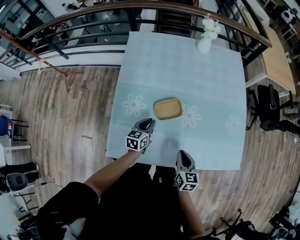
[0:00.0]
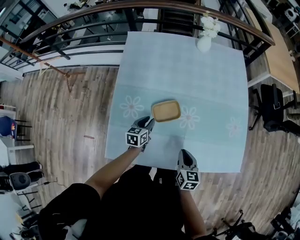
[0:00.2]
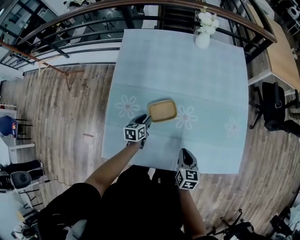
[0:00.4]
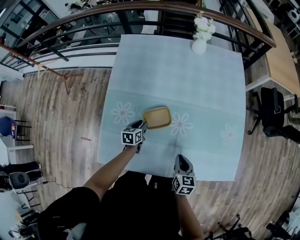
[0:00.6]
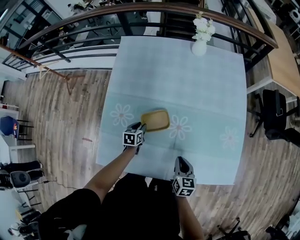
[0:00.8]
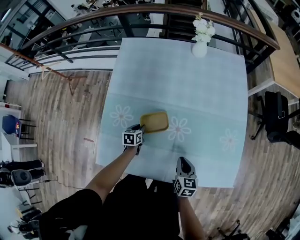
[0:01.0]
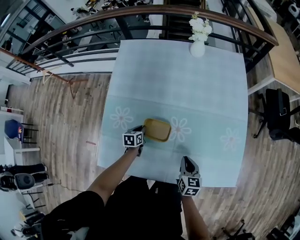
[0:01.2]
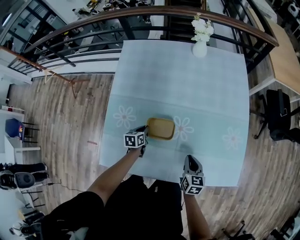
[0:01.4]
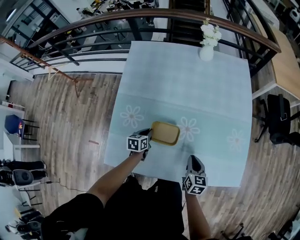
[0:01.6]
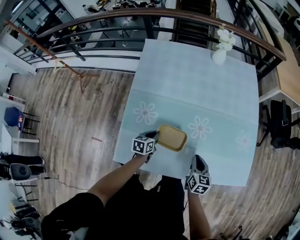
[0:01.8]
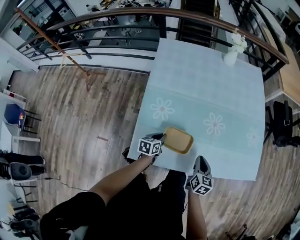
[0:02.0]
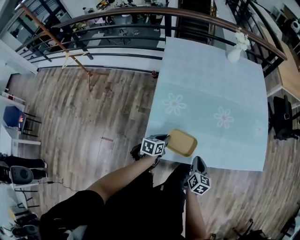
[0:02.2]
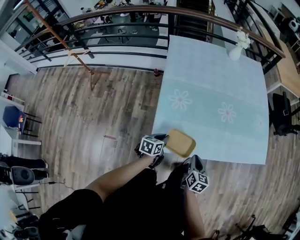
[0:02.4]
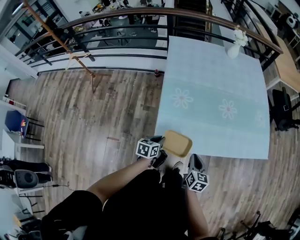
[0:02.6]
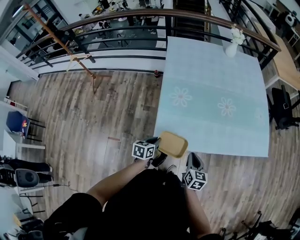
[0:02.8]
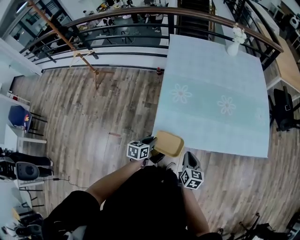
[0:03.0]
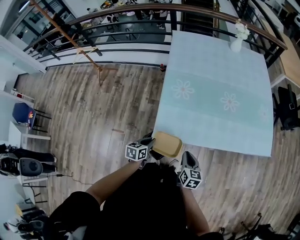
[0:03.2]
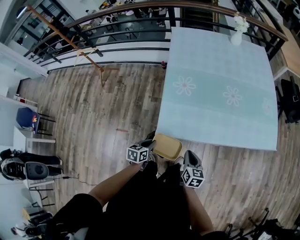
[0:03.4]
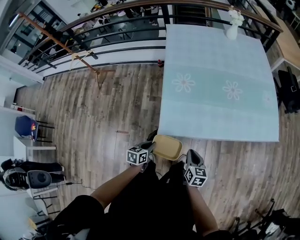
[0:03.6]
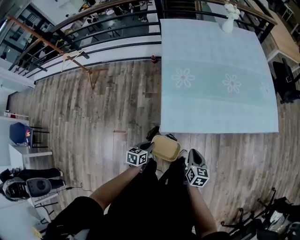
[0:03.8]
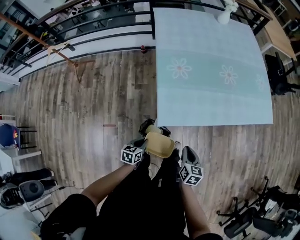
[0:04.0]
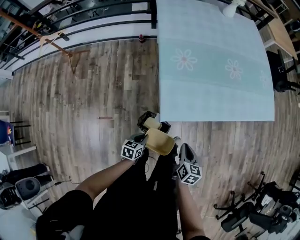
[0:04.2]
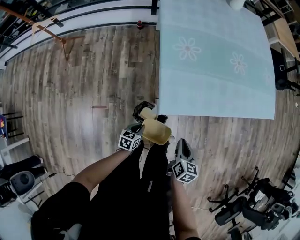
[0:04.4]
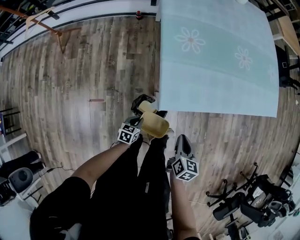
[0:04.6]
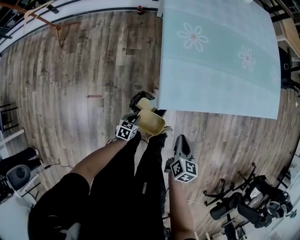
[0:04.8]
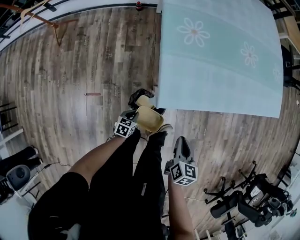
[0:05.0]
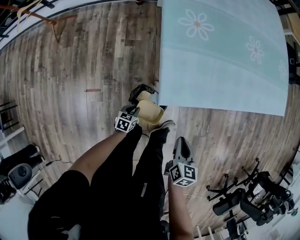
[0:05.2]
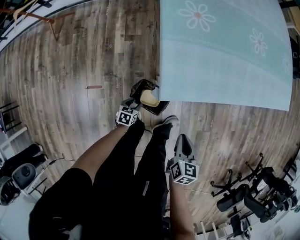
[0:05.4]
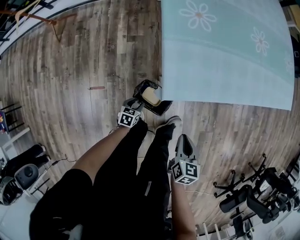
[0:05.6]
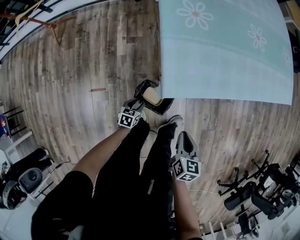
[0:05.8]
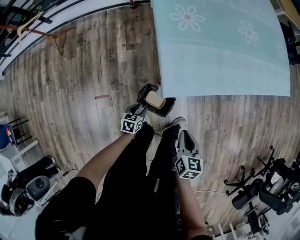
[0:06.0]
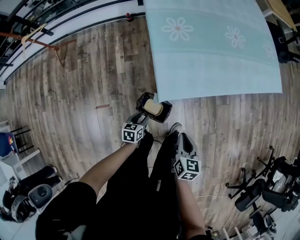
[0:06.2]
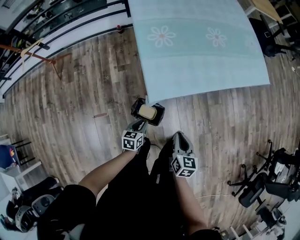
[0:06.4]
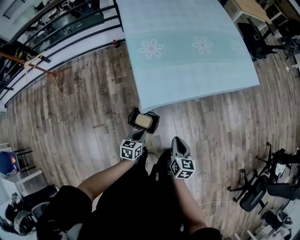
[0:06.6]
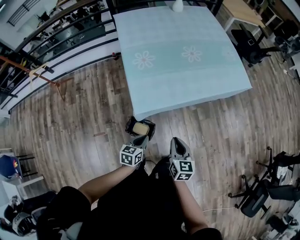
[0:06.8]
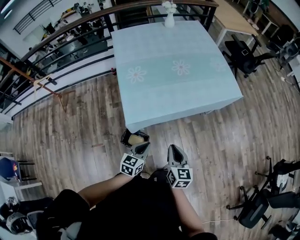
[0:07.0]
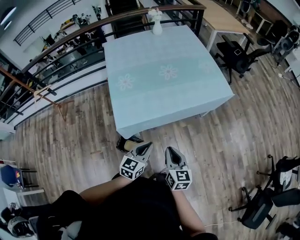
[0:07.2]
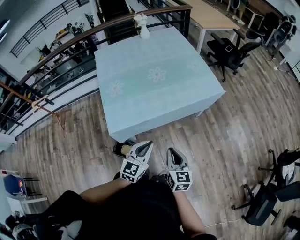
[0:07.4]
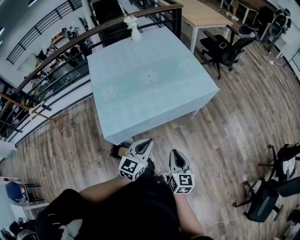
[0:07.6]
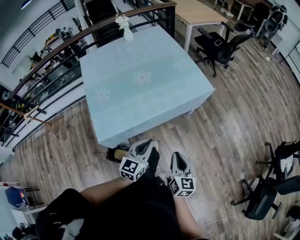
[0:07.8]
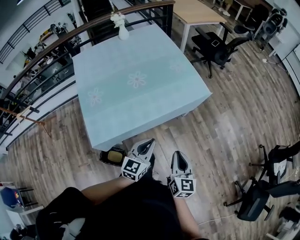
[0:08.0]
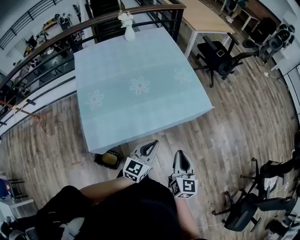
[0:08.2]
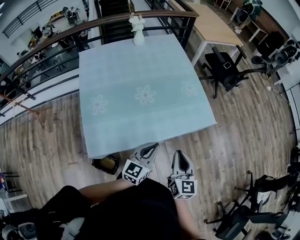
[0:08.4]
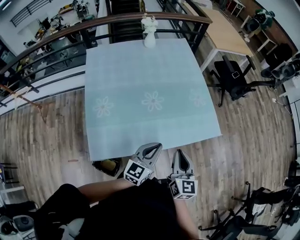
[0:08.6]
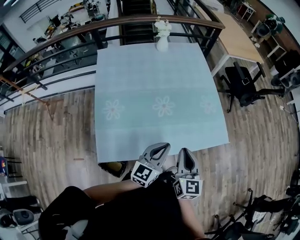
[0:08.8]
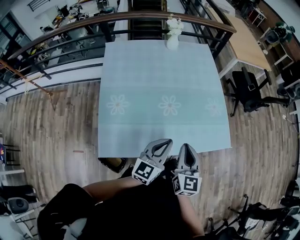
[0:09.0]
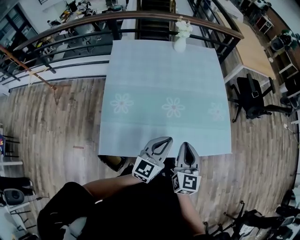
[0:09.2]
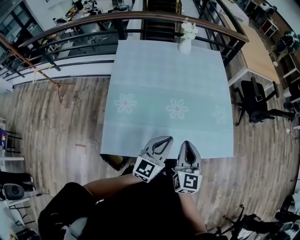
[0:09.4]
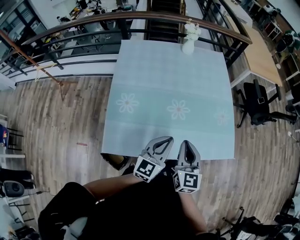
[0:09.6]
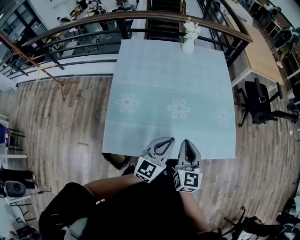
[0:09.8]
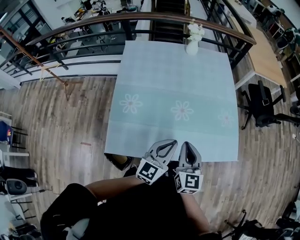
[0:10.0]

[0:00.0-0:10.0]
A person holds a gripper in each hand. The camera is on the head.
0:00.0 to 0:01.4: The left gripper travels downward and forward by approximately 10 cm, and changes its angle by some 20 degrees; the right gripper travels to the right and forward by some 15 cm.
0:01.4 to 0:02.8: Both grippers move backward and to the left, roughly 40 cm.
0:02.8 to 0:04.2: The right gripper travels backward, to the left and downward by some 15 cm. The left gripper moves backward, downward and to the left, roughly 20 cm.
0:04.2 to 0:05.8: The right gripper shifts about 10 cm downward and backward. Meanwhile the left gripper shifts some 20 cm downward, and opens.
0:05.8 to 0:07.2: The left gripper travels upward and to the right by about 60 cm, angles its fingers upward, by about 30 degrees, and closes up; the right gripper is displaced upward and to the right by about 35 cm, and turns by about 30 degrees.
0:07.2 to 0:08.6: The two grippers go approximately 30 cm forward.
0:08.6 to 0:10.0: The right gripper moves forward and to the left, approximately 15 cm. Meanwhile the left gripper shifts approximately 10 cm forward and to the left.

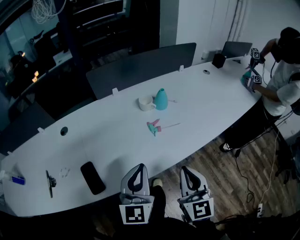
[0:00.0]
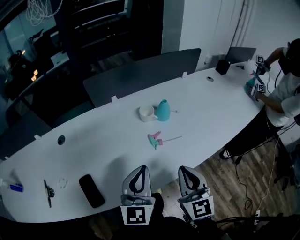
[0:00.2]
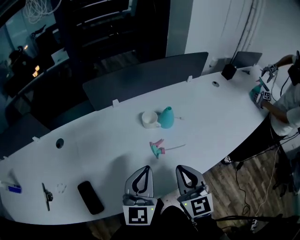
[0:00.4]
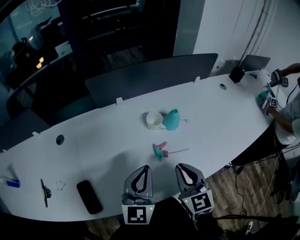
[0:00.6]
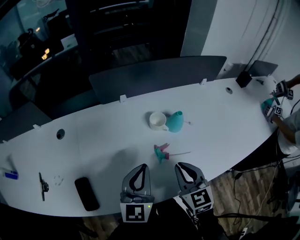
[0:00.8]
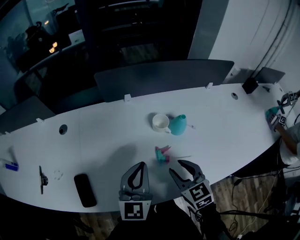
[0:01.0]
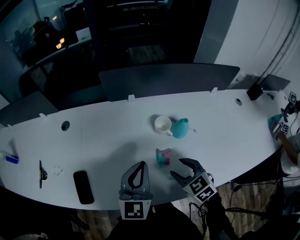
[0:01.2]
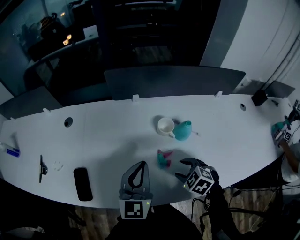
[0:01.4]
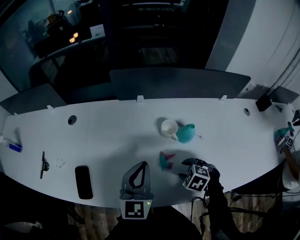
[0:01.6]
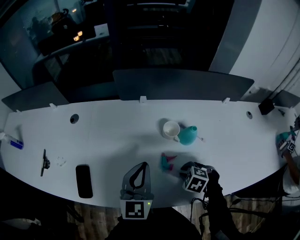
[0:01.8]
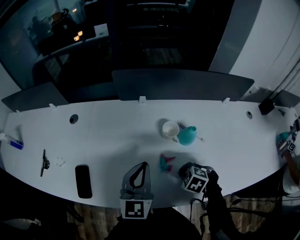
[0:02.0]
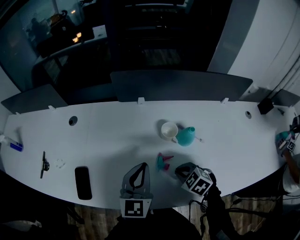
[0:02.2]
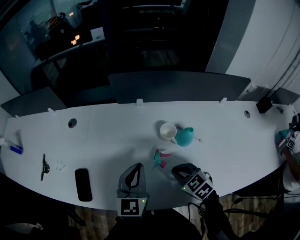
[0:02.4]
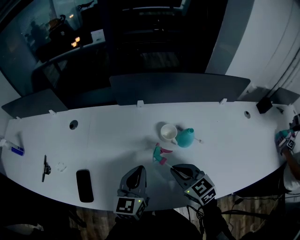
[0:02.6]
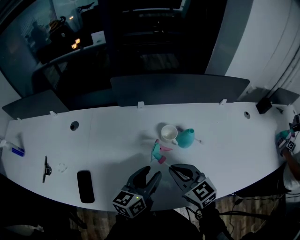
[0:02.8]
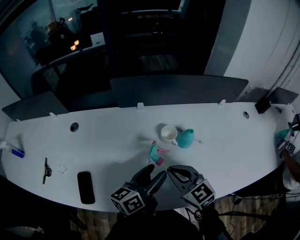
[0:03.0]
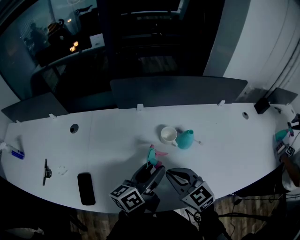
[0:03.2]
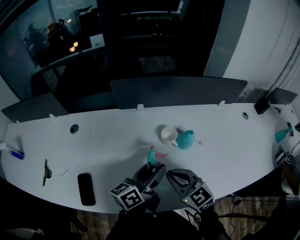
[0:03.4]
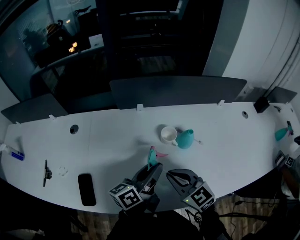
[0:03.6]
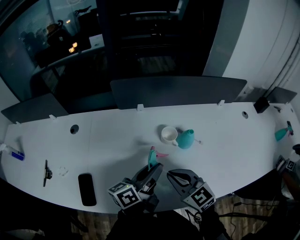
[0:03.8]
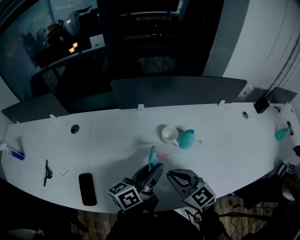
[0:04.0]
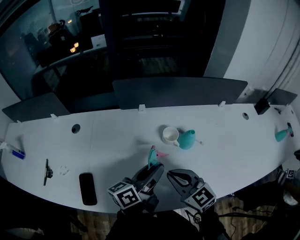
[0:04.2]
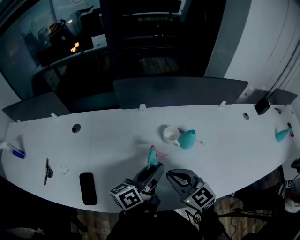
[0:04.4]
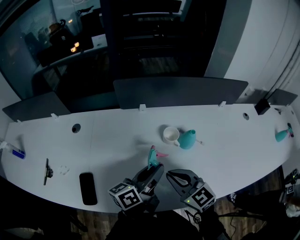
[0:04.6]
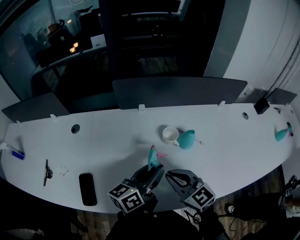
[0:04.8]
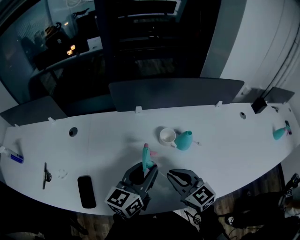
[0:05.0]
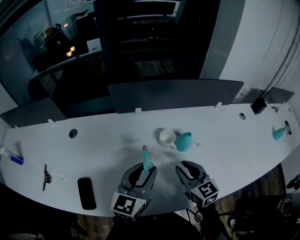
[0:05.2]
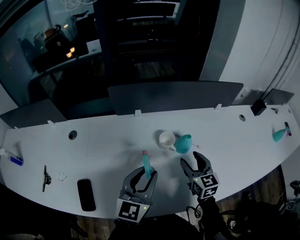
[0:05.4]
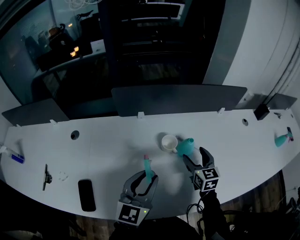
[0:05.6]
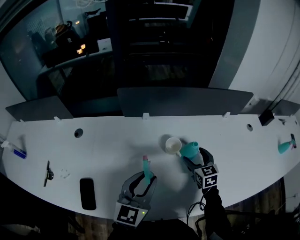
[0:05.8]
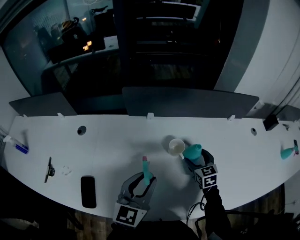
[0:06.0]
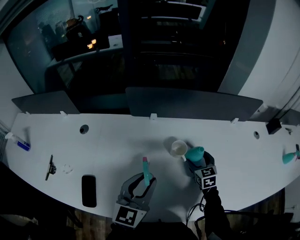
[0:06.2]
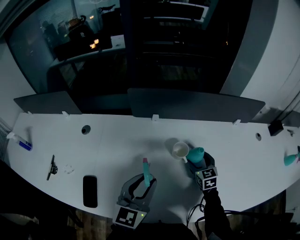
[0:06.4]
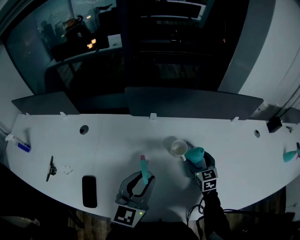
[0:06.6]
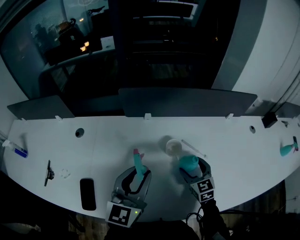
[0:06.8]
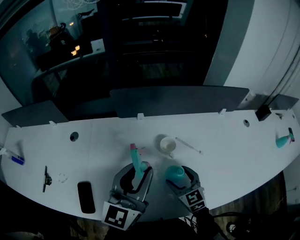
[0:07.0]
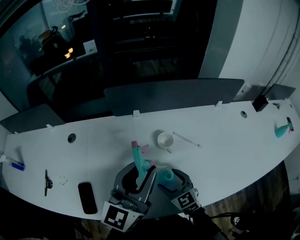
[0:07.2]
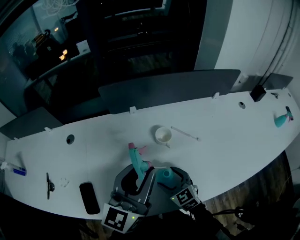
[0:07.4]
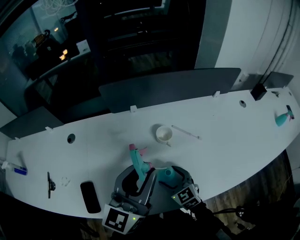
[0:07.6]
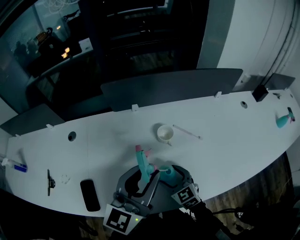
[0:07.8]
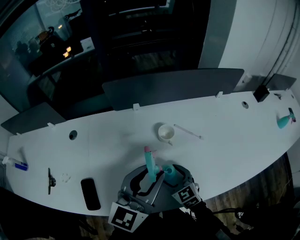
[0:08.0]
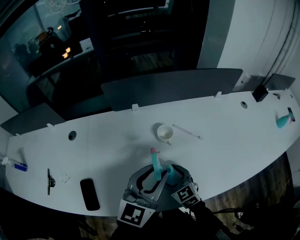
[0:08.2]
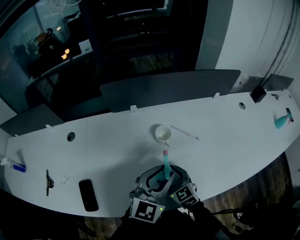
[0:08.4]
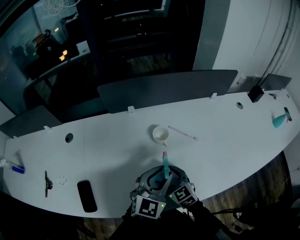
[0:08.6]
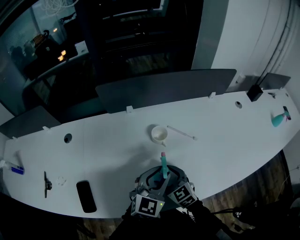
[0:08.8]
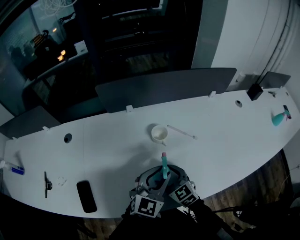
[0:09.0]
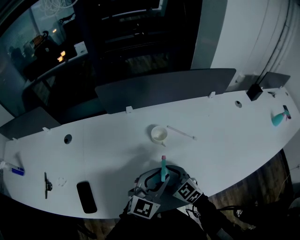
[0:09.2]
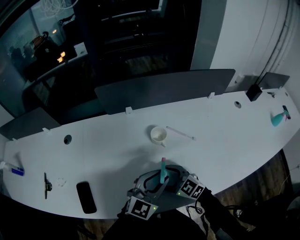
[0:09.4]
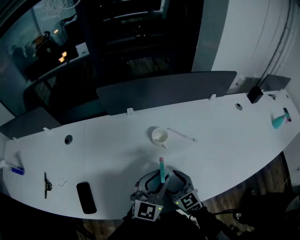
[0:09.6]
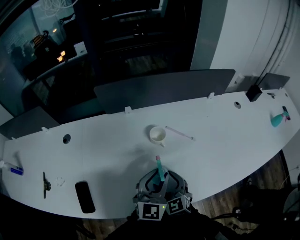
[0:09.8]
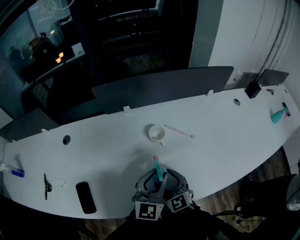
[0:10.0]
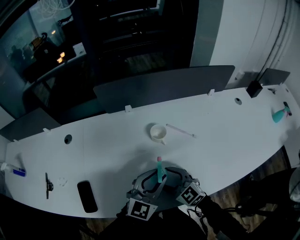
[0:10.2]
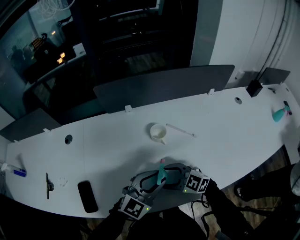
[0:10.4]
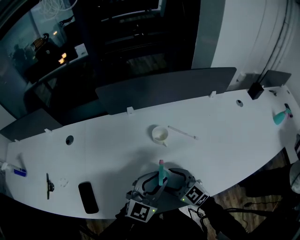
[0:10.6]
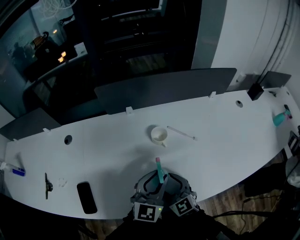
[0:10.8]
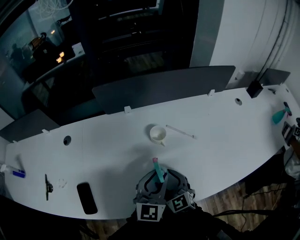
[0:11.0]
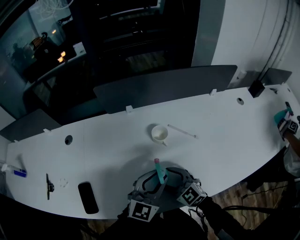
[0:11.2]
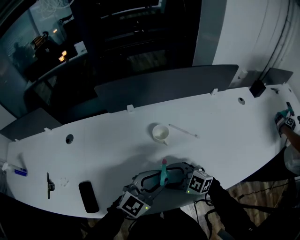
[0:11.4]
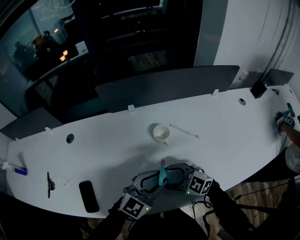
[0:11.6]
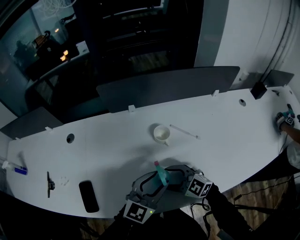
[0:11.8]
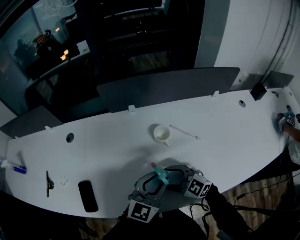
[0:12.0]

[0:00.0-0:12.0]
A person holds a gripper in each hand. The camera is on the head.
0:00.0 to 0:01.6: The left gripper moves some 20 cm; the right gripper ends up some 30 cm from where it was, tilts its fingers some 70 degrees downward, and opens up.
0:01.6 to 0:03.0: The right gripper heads upward, covering roughly 15 cm, tips its fingers upward by about 50 degrees, and closes. The left gripper rotates around the line of its fingers by approximately 40 degrees, counterclockwise from behind, and opens up.
0:03.0 to 0:04.4: The left gripper closes up.
0:04.4 to 0:06.0: The left gripper rolls clockwise, seen from behind, by approximately 50 degrees; the right gripper shifts roughly 25 cm forward, to the right and downward, changes its angle by about 30 degrees, and opens its fingers.
0:06.0 to 0:07.6: The right gripper travels backward and to the left by approximately 20 cm. The left gripper goes approximately 10 cm upward.
0:07.6 to 0:09.0: The left gripper is displaced downward and to the right by about 15 cm, and swivels roughly 30 degrees.
0:09.0 to 0:10.4: The right gripper changes its angle by approximately 30 degrees.

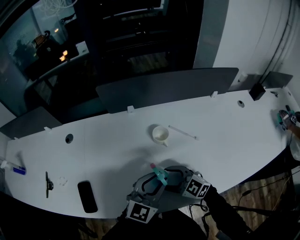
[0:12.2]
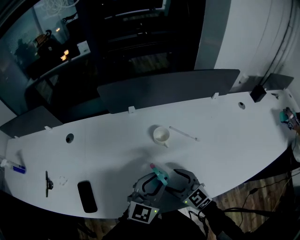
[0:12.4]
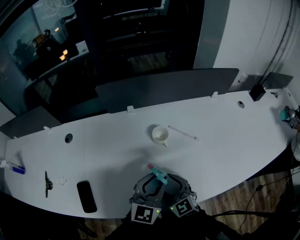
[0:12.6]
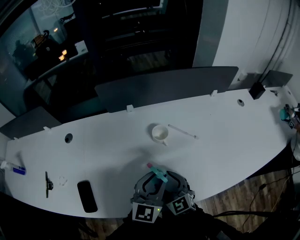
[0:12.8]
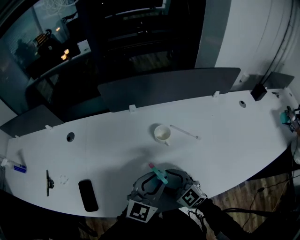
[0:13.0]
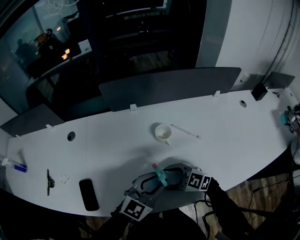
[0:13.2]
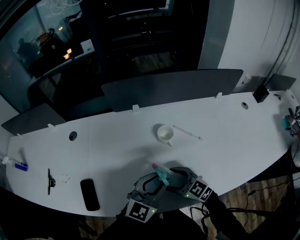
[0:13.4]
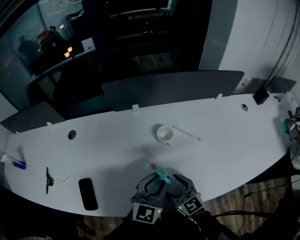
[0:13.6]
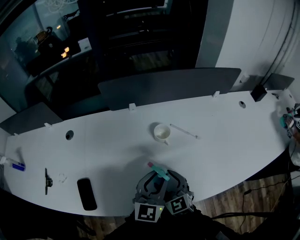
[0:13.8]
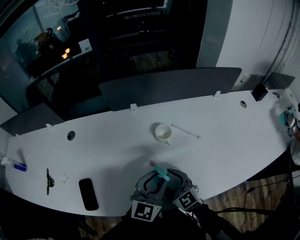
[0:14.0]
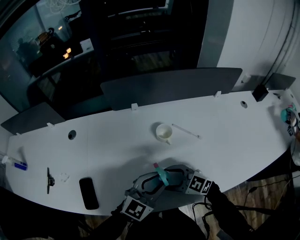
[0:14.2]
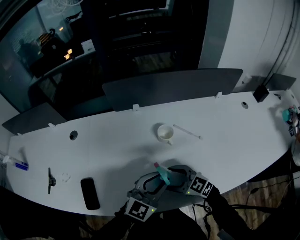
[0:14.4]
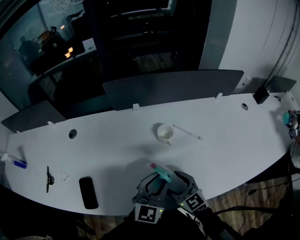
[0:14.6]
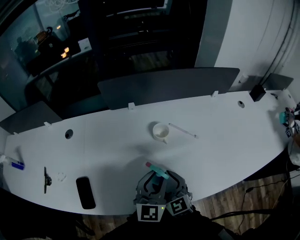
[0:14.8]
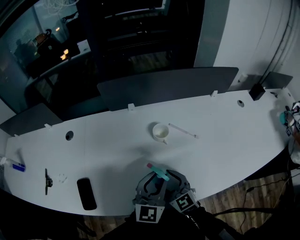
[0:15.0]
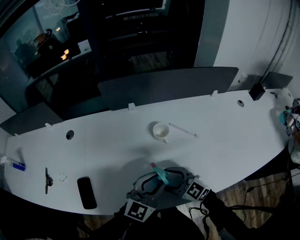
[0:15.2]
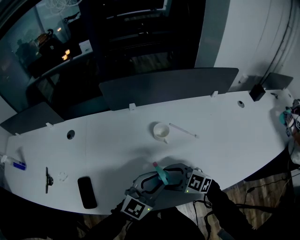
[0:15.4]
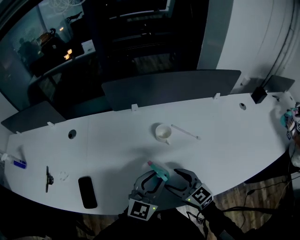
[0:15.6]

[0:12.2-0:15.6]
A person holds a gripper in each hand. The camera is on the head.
0:12.2 to 0:13.8: The right gripper changes its angle by about 40 degrees.
0:13.8 to 0:15.6: The right gripper swivels approximately 20 degrees.
